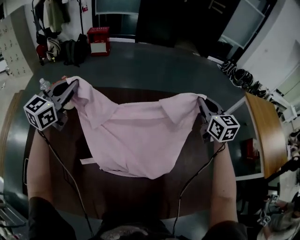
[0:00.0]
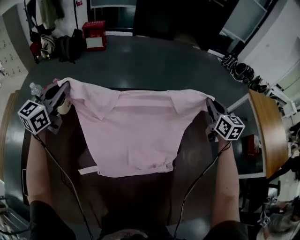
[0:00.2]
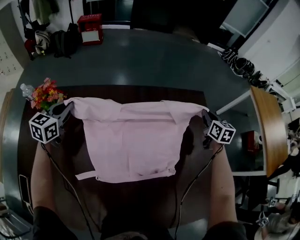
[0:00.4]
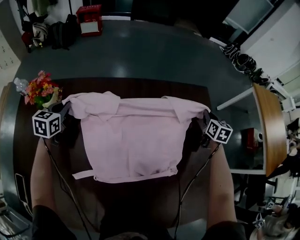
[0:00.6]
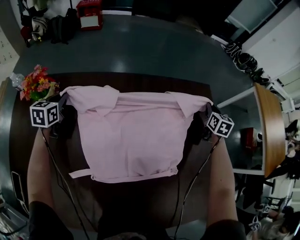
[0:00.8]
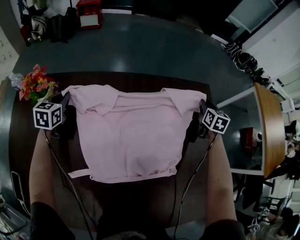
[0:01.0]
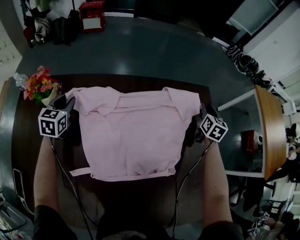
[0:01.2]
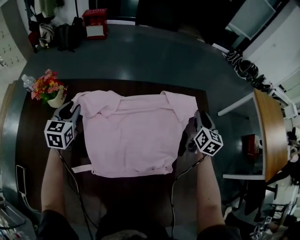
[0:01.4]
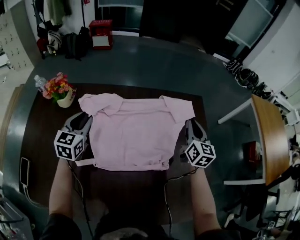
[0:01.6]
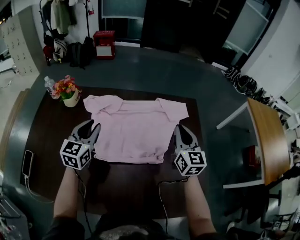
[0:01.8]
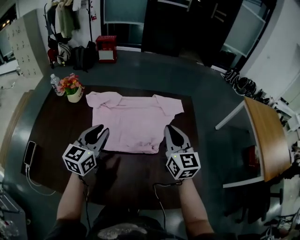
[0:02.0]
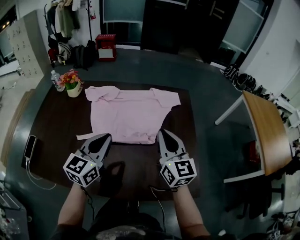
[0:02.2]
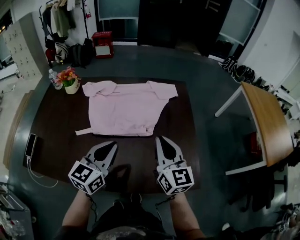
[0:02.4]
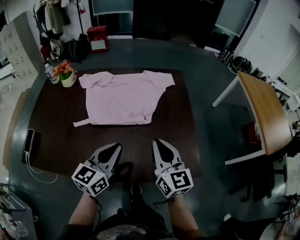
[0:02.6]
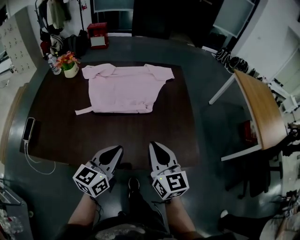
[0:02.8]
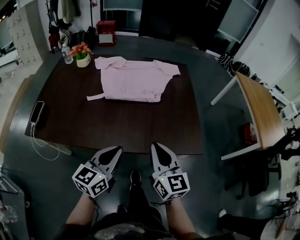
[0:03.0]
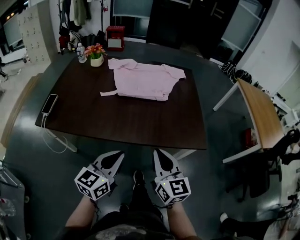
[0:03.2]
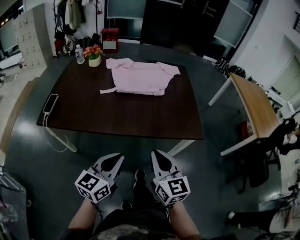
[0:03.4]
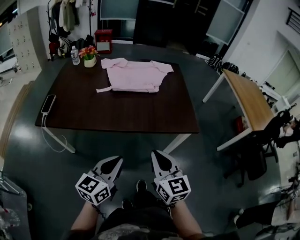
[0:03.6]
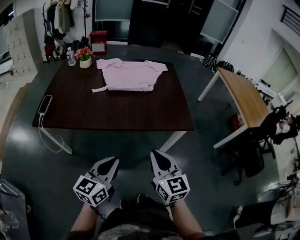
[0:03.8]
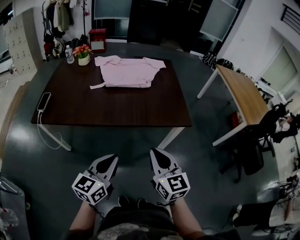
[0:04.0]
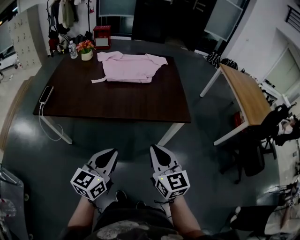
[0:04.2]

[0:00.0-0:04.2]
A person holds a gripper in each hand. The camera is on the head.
0:00.0 to 0:01.4: The right gripper travels downward and forward by approximately 20 cm, turns by about 30 degrees, and opens; the left gripper heads downward, covering about 25 cm, changes its angle by about 30 degrees, and opens its fingers.
0:01.4 to 0:02.8: The right gripper travels backward by about 50 cm, swivels roughly 30 degrees, and closes its fingers. The left gripper travels backward and to the right by about 60 cm, swivels about 30 degrees, and closes up.
0:02.8 to 0:04.2: Both grippers move backward, about 35 cm.

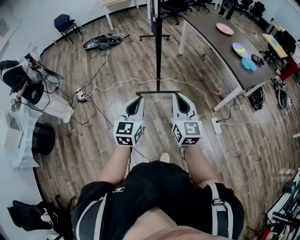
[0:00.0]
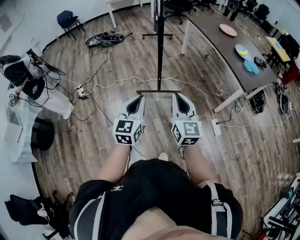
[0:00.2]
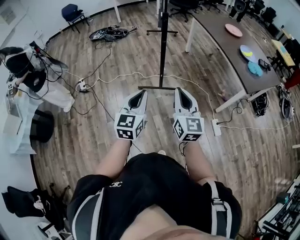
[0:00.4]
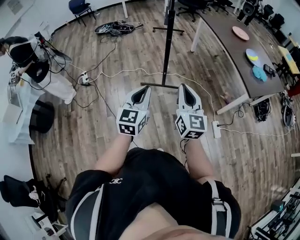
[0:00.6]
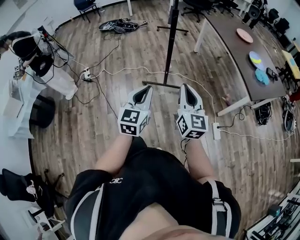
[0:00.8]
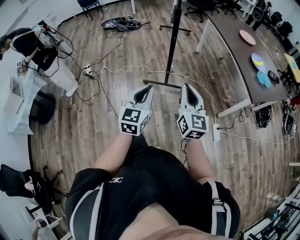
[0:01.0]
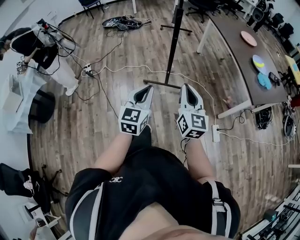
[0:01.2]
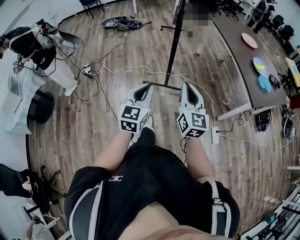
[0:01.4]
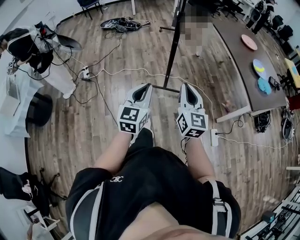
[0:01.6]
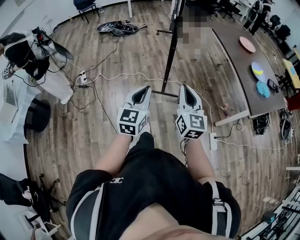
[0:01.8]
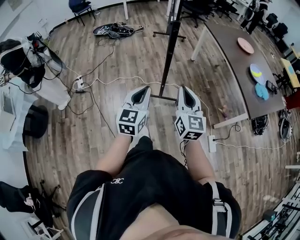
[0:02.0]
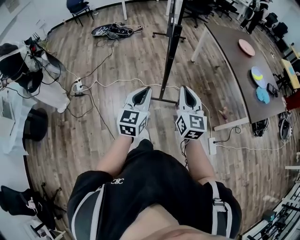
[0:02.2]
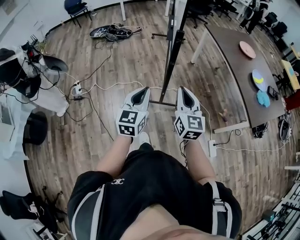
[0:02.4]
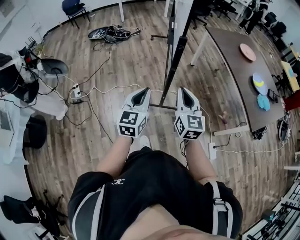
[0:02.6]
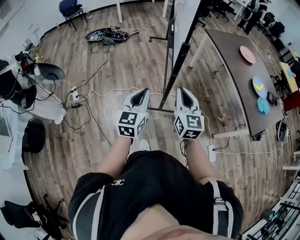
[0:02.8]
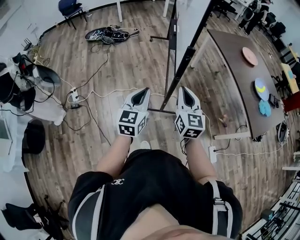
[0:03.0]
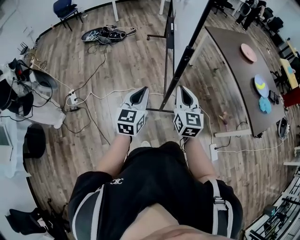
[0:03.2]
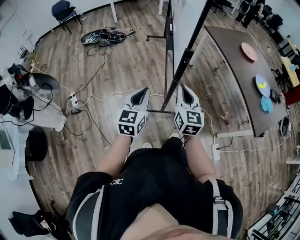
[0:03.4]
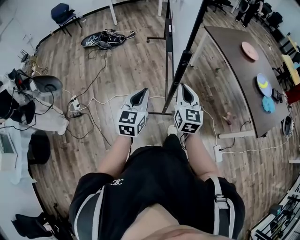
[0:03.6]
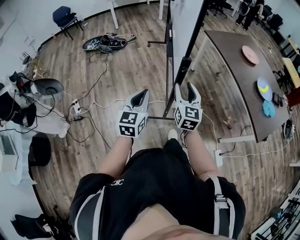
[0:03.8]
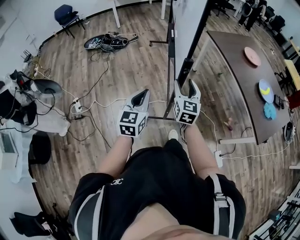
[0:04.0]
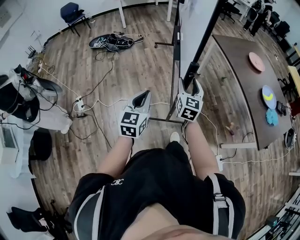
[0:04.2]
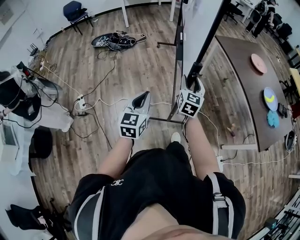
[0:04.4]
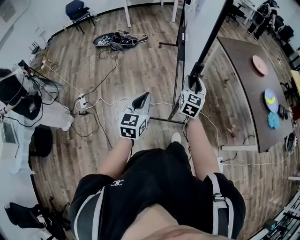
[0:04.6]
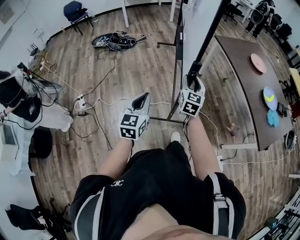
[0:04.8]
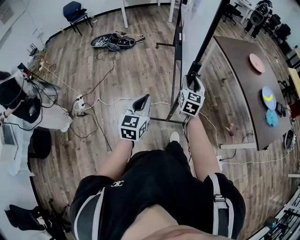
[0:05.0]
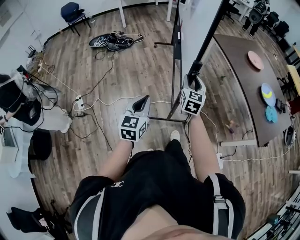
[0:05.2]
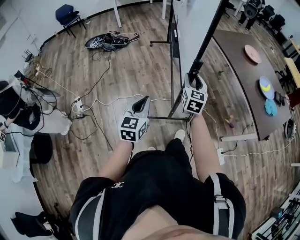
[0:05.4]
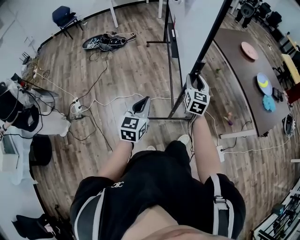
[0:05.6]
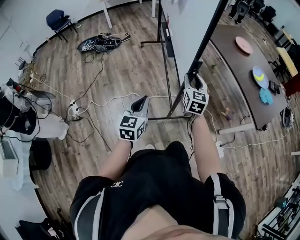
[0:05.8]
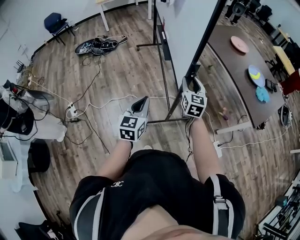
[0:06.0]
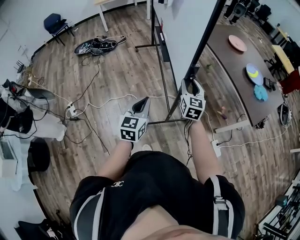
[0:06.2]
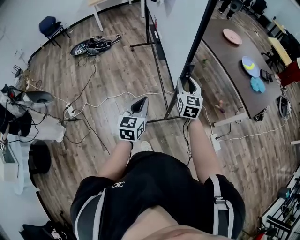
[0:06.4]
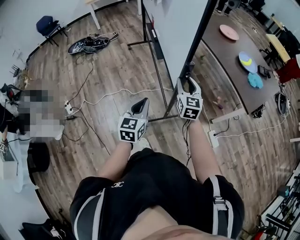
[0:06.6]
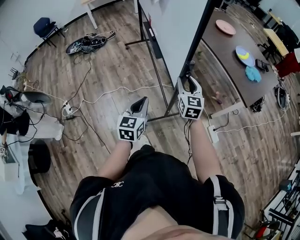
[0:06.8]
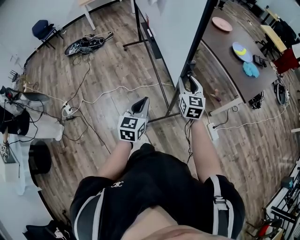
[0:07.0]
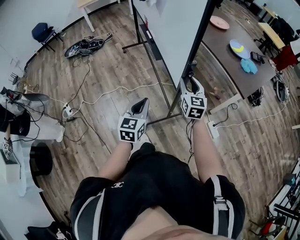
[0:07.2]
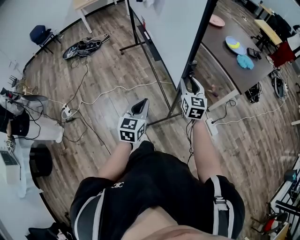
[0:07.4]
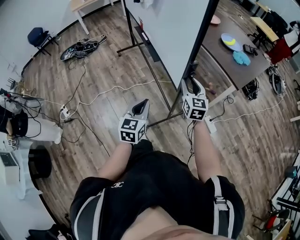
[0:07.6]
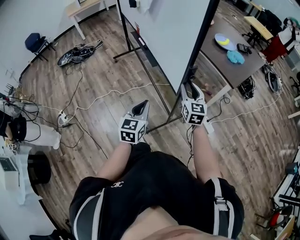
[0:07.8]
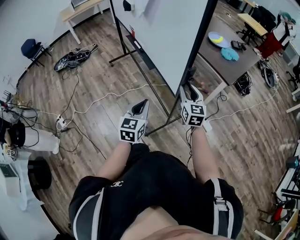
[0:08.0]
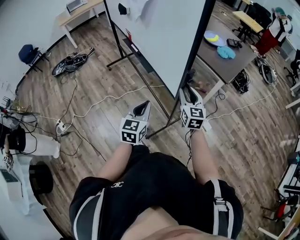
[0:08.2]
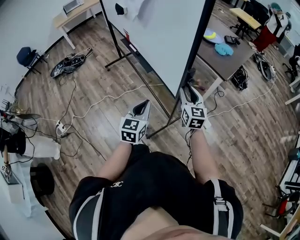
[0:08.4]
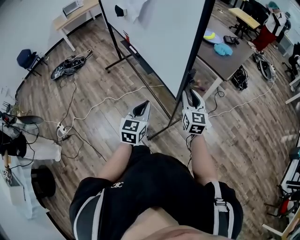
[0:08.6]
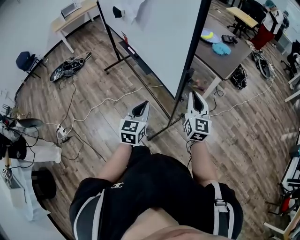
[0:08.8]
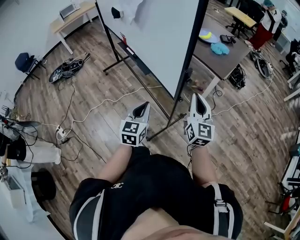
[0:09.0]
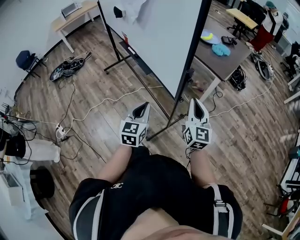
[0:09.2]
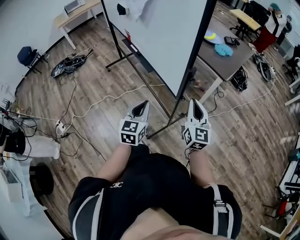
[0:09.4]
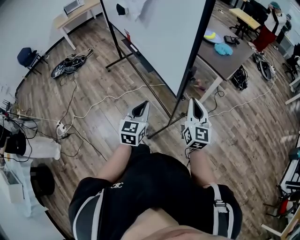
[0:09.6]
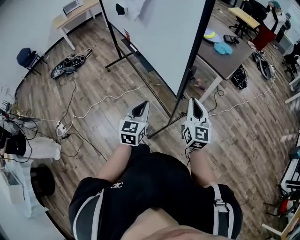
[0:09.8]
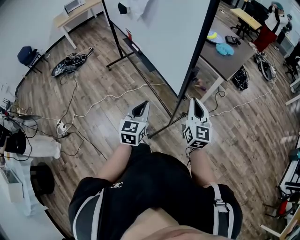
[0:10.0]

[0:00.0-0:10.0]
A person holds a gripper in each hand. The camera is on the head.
0:00.0 to 0:01.4: The grippers both shift forward by approximately 5 cm.
0:01.4 to 0:02.8: Both grippers move forward, approximately 30 cm.
0:02.8 to 0:04.2: The right gripper shifts approximately 20 cm forward, and opens up. Meanwhile the left gripper heads forward, covering some 10 cm.
0:04.2 to 0:05.8: The left gripper is displaced backward by roughly 5 cm. The right gripper shifts approximately 5 cm to the right.
0:05.8 to 0:07.2: Both grippers travel together to the right and backward, roughly 20 cm.
0:07.2 to 0:08.6: The right gripper is displaced to the right and backward by about 20 cm, while the left gripper moves to the right, about 15 cm.
0:08.6 to 0:10.0: The right gripper heads backward, covering about 5 cm, and closes up.

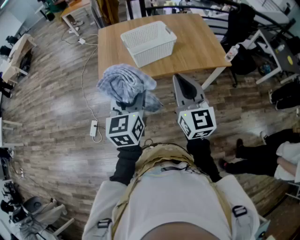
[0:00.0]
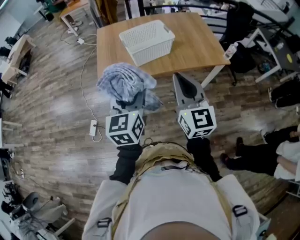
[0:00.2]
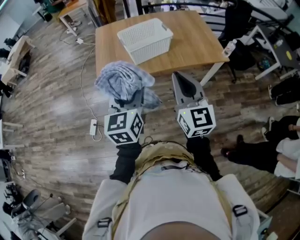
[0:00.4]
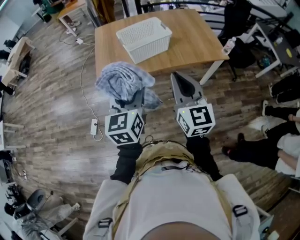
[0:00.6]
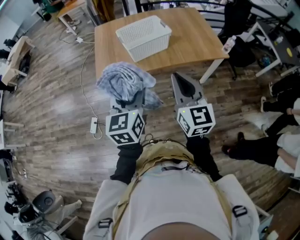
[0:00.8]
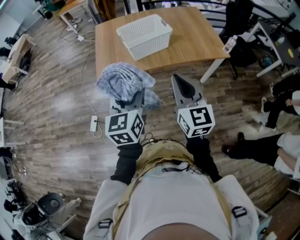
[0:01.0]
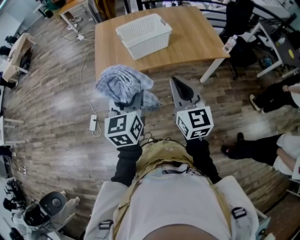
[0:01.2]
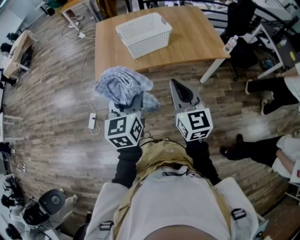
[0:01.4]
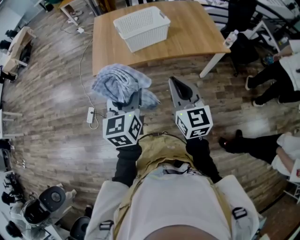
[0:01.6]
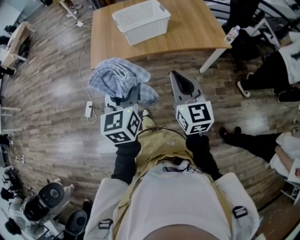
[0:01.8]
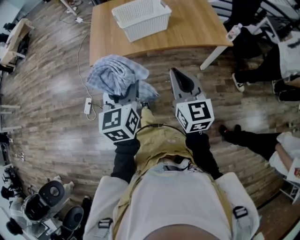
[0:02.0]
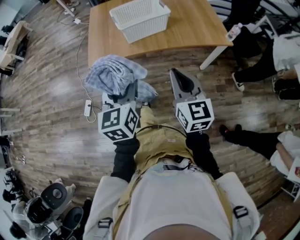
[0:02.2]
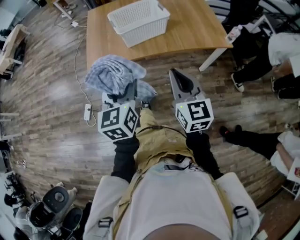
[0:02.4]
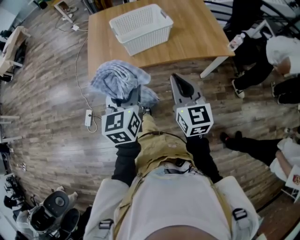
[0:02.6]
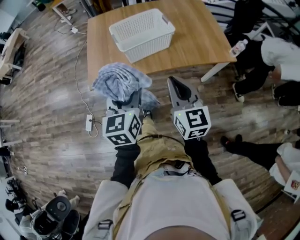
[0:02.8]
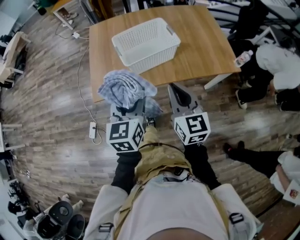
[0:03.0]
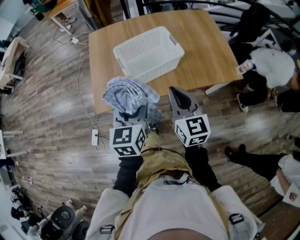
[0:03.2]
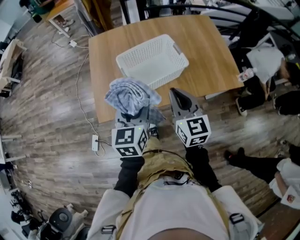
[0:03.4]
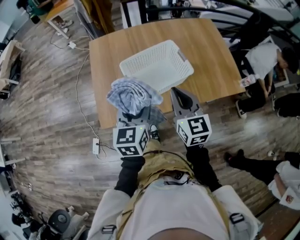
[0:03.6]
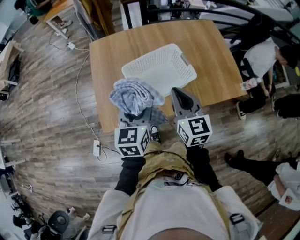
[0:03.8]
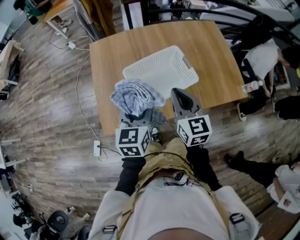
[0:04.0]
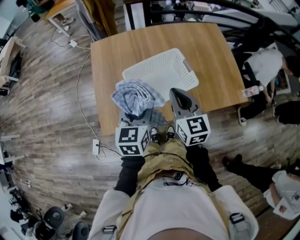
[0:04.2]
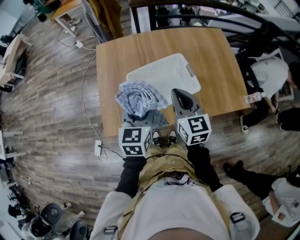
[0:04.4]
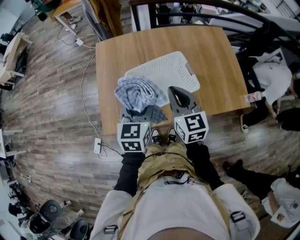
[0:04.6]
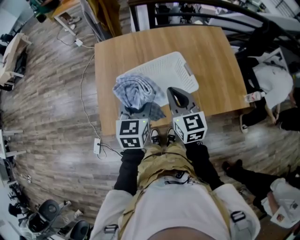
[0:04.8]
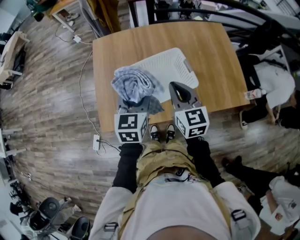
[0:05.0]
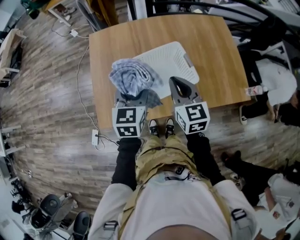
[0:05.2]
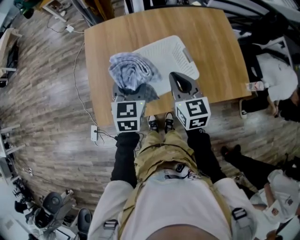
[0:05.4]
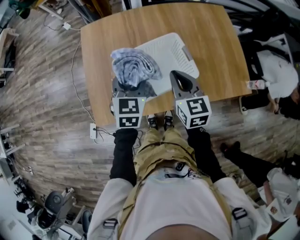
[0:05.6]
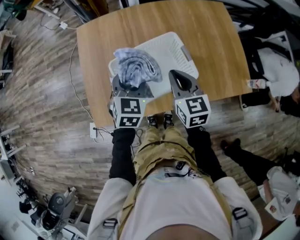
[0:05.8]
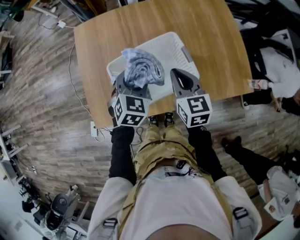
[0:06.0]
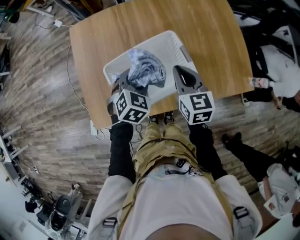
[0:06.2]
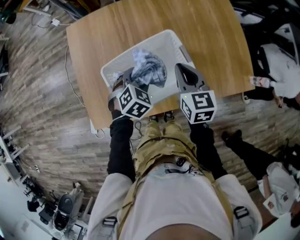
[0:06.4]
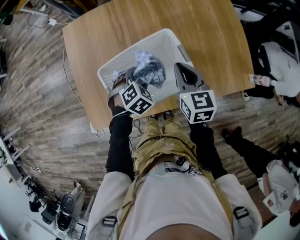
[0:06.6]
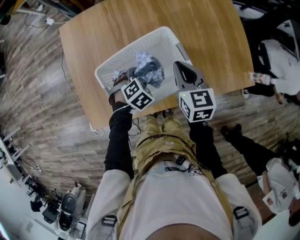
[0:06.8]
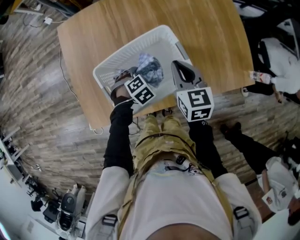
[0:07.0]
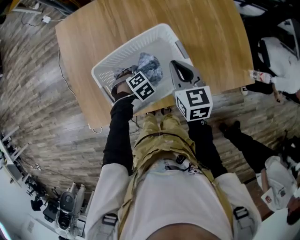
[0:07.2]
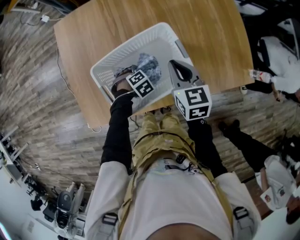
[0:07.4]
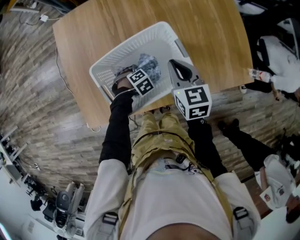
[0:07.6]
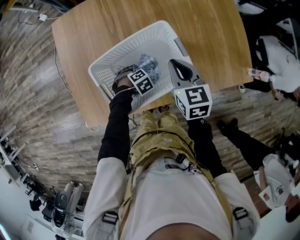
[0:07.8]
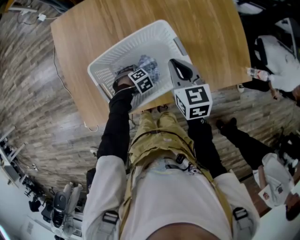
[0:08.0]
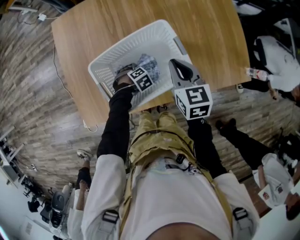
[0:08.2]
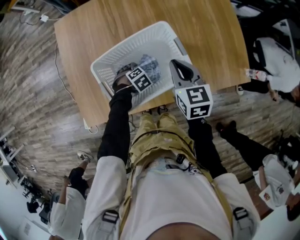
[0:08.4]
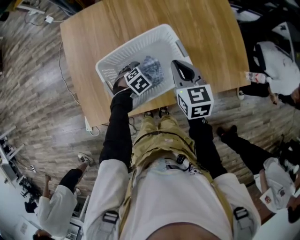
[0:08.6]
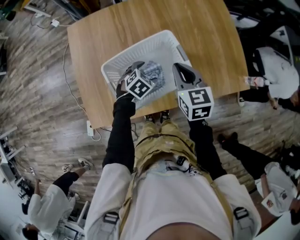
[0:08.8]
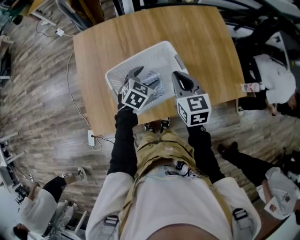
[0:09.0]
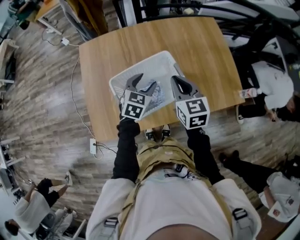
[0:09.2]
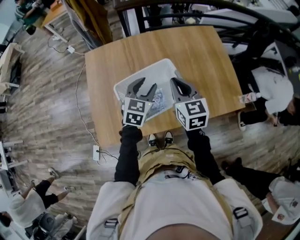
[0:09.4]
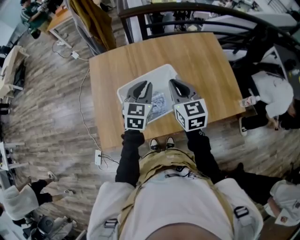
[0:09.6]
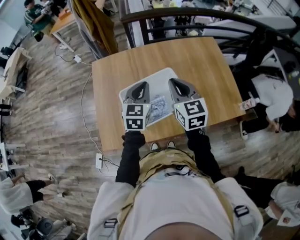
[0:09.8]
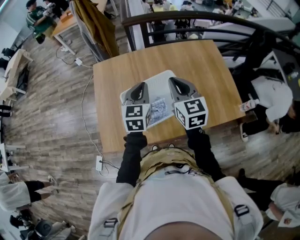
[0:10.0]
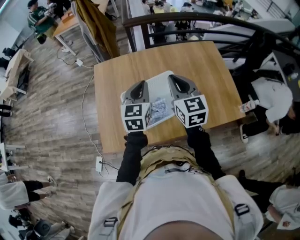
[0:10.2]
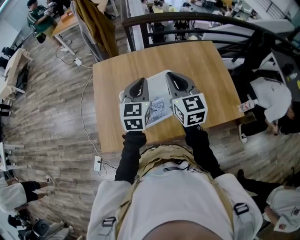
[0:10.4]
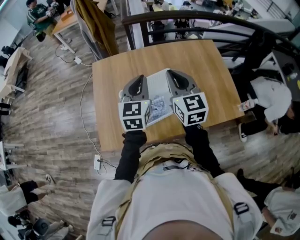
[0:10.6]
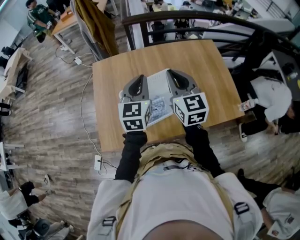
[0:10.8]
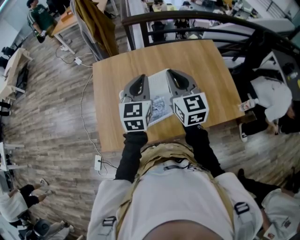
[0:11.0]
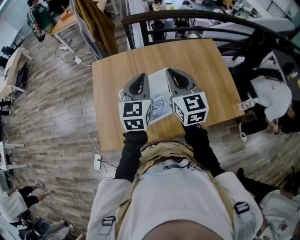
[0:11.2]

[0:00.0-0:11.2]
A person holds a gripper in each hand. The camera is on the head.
0:00.0 to 0:01.6: The right gripper moves downward and backward, roughly 10 cm. The left gripper moves backward, some 5 cm.
0:01.6 to 0:03.2: Both grippers move forward, about 25 cm.
0:03.2 to 0:04.8: The two grippers go roughly 20 cm forward.
0:04.8 to 0:06.4: The right gripper is displaced downward, forward and to the right by about 15 cm. Meanwhile the left gripper moves downward and forward, some 20 cm, and points its fingers some 40 degrees further downward.
0:06.4 to 0:08.0: The left gripper moves downward, approximately 20 cm, and changes its angle by about 40 degrees.
0:08.0 to 0:09.6: The right gripper moves upward, roughly 15 cm, and changes its angle by some 20 degrees. Meanwhile the left gripper heads upward, covering approximately 40 cm, tilts its fingers approximately 60 degrees upward, and closes up.
0:09.6 to 0:11.2: Both grippers travel together upward, some 10 cm.
